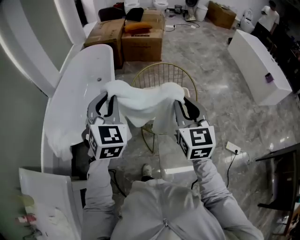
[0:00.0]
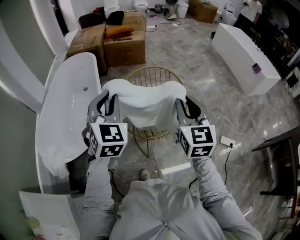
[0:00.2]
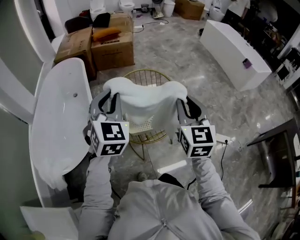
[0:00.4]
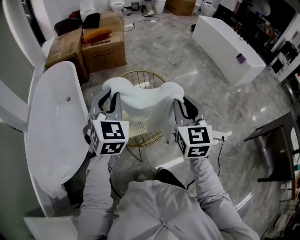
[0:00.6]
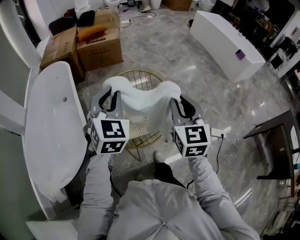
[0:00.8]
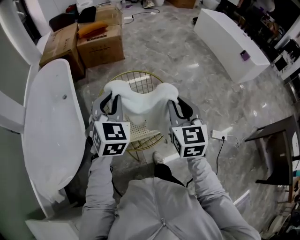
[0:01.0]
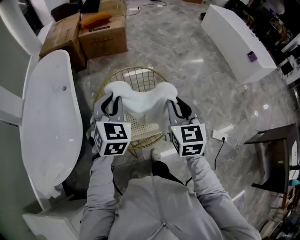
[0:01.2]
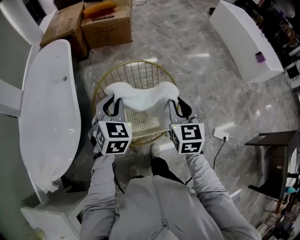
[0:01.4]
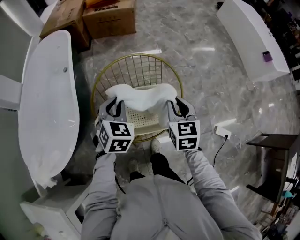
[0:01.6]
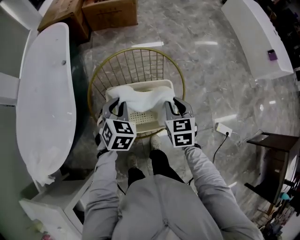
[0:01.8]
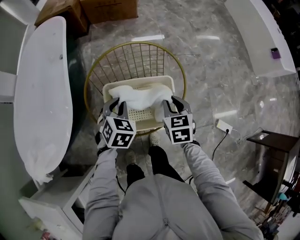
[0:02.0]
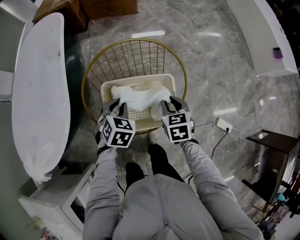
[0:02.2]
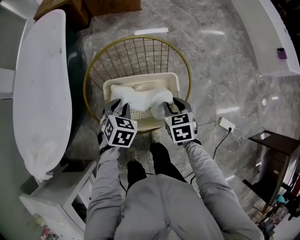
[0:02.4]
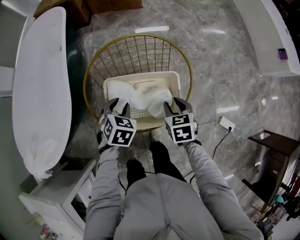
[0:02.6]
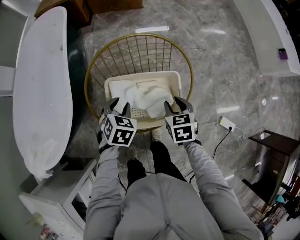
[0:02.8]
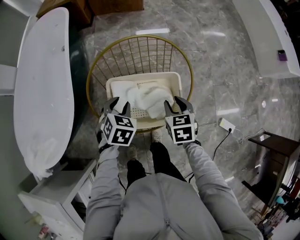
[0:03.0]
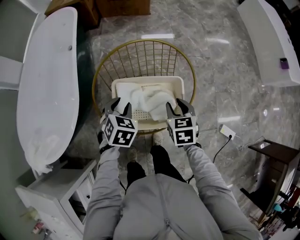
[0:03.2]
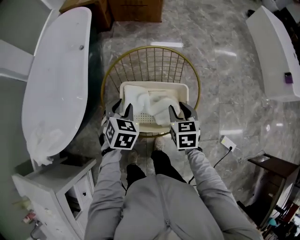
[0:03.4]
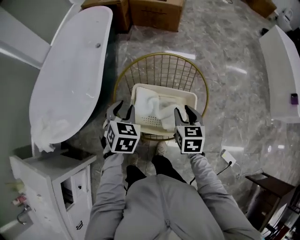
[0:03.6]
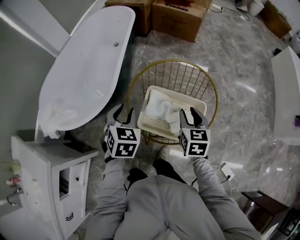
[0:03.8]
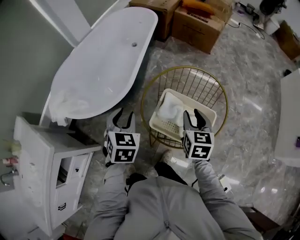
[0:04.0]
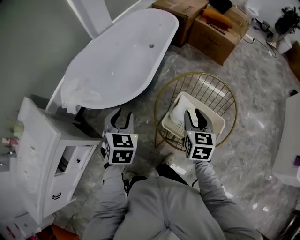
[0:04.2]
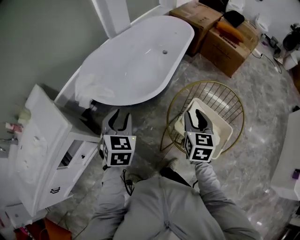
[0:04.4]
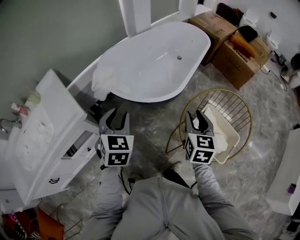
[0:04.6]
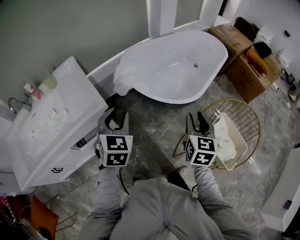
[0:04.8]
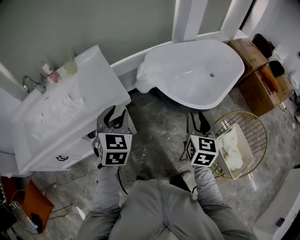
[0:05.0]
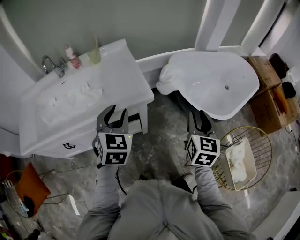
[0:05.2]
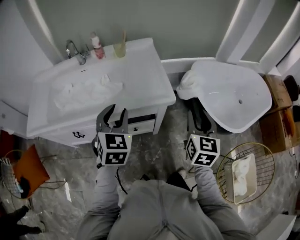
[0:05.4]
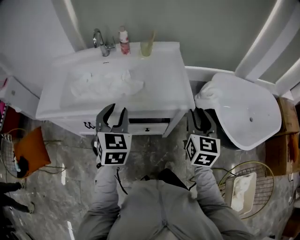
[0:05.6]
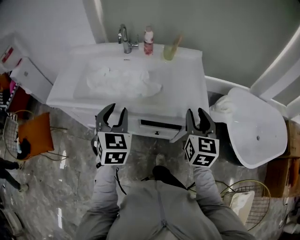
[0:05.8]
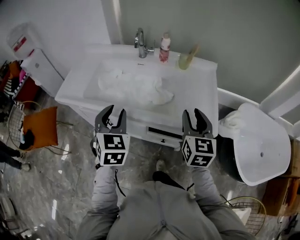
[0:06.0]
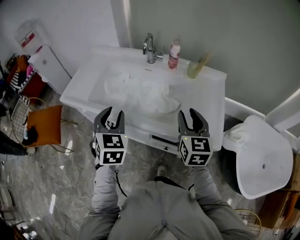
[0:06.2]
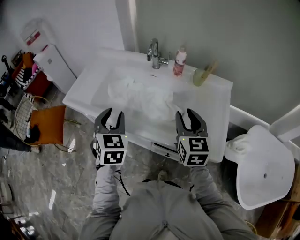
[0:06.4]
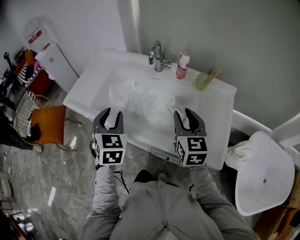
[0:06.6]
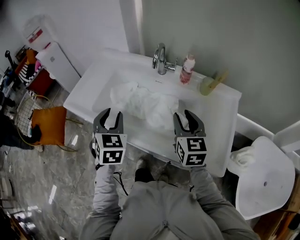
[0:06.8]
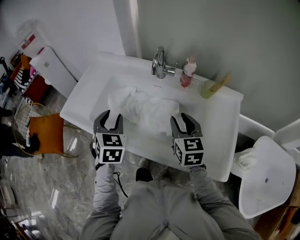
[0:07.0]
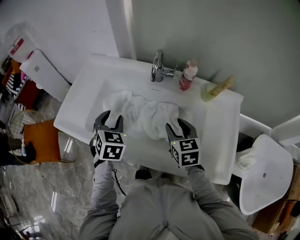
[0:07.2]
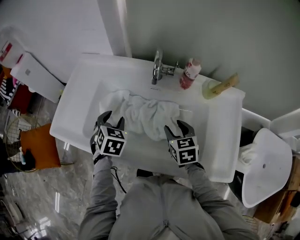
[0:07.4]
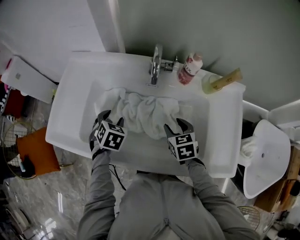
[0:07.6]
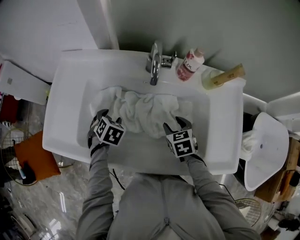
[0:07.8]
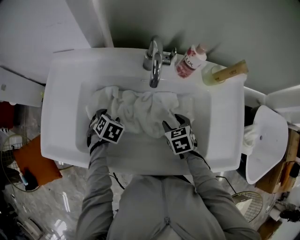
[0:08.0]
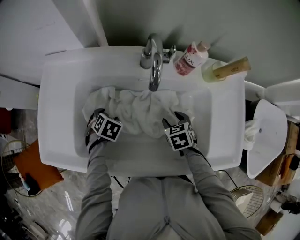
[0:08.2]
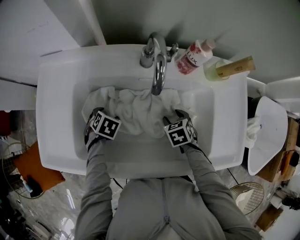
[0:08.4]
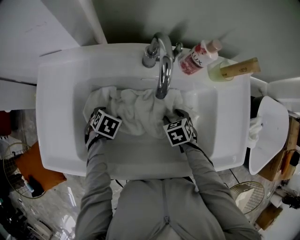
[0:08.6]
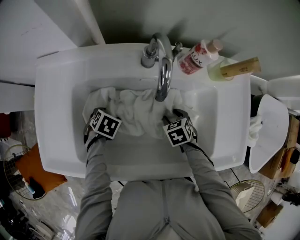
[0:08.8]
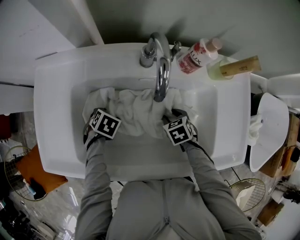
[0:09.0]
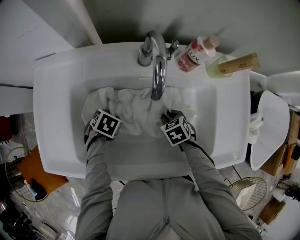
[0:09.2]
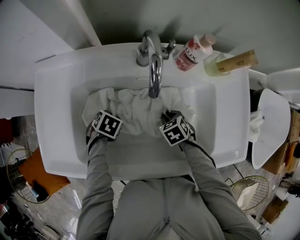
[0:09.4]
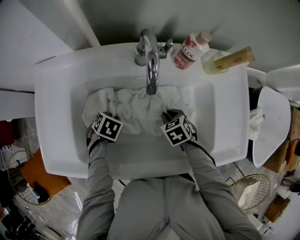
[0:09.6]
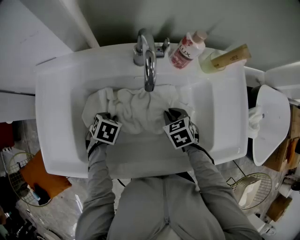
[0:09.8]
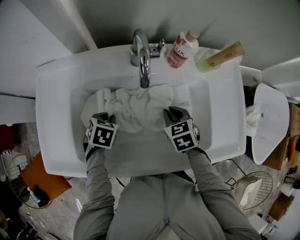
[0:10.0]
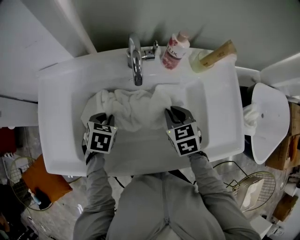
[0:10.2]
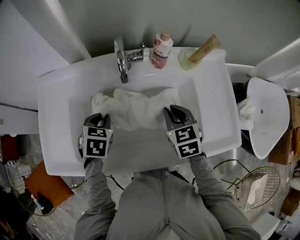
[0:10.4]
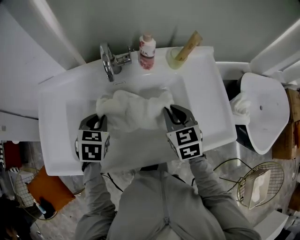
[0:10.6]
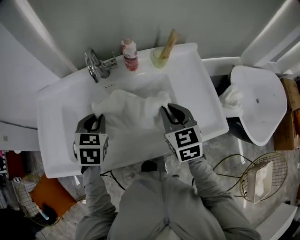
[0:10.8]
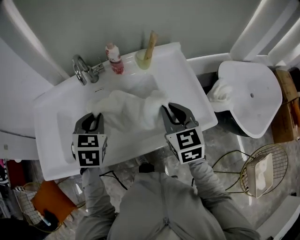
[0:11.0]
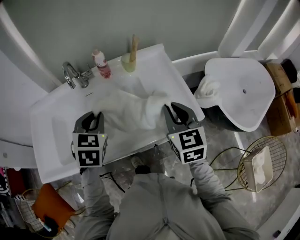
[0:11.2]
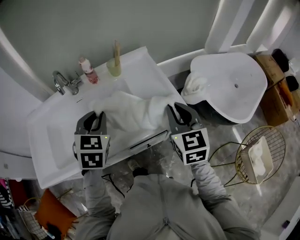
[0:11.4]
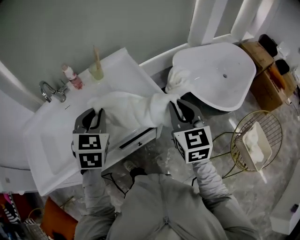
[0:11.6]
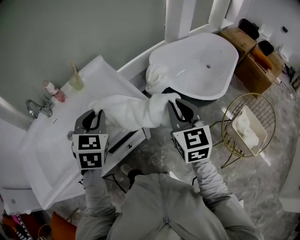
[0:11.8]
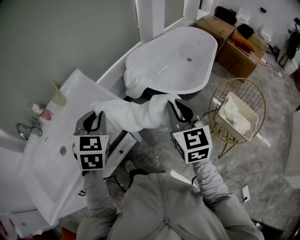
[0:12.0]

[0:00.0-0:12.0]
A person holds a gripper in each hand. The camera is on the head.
0:00.0 to 0:01.6: Both grippers move forward, downward and to the right, roughly 35 cm. The left gripper swivels roughly 30 degrees. The right gripper swivels roughly 30 degrees.
0:01.6 to 0:03.0: The two grippers go some 15 cm downward. The left gripper swivels roughly 20 degrees; the right gripper swivels some 20 degrees.
0:03.0 to 0:04.4: The right gripper ends up about 30 cm from where it was, and swivels some 40 degrees. Meanwhile the left gripper ends up about 40 cm from where it was, and turns by approximately 60 degrees.
0:04.4 to 0:06.0: Both grippers are carried some 70 cm. The right gripper changes its angle by about 70 degrees. Meanwhile the left gripper changes its angle by about 70 degrees.
0:06.0 to 0:07.6: Both grippers move forward and downward, roughly 35 cm. The left gripper tips its fingers downward by about 30 degrees. Meanwhile the right gripper angles its fingers downward, by some 30 degrees.
0:07.6 to 0:09.0: Both grippers move downward, some 15 cm. The left gripper changes its angle by roughly 30 degrees; the right gripper swivels approximately 20 degrees.
0:09.0 to 0:10.4: The grippers both shift upward by some 15 cm. The left gripper swivels approximately 30 degrees, and closes, while the right gripper points its fingers about 30 degrees further upward, and closes up.
0:10.4 to 0:12.0: The pair of grippers is taken some 60 cm. The left gripper swivels about 50 degrees. Meanwhile the right gripper rotates some 50 degrees.

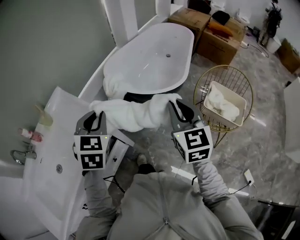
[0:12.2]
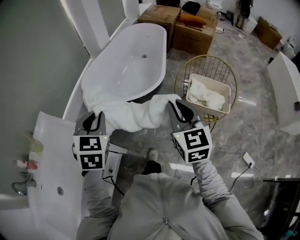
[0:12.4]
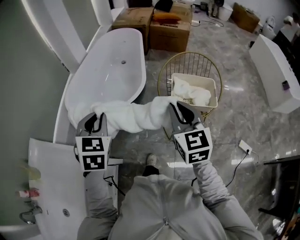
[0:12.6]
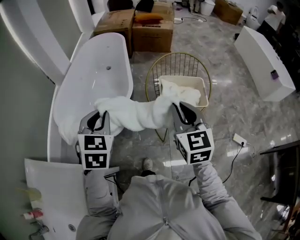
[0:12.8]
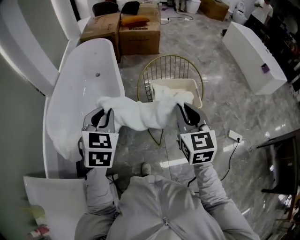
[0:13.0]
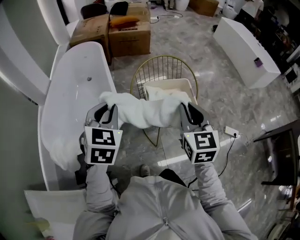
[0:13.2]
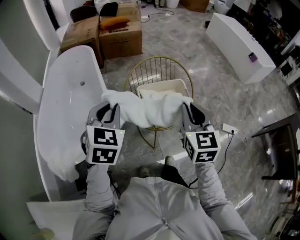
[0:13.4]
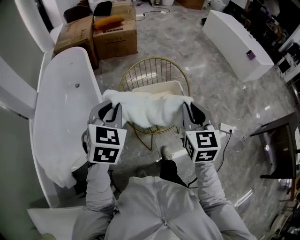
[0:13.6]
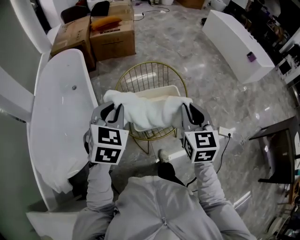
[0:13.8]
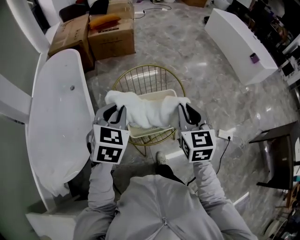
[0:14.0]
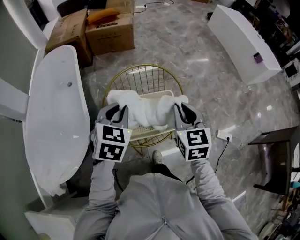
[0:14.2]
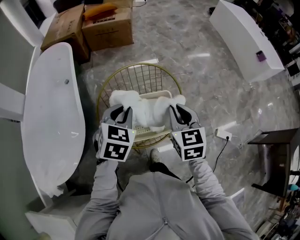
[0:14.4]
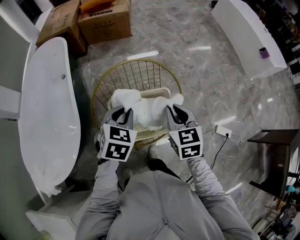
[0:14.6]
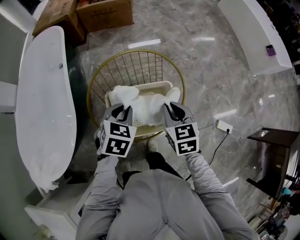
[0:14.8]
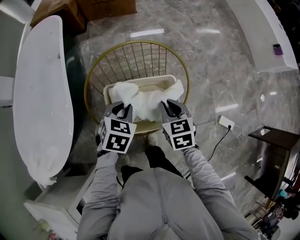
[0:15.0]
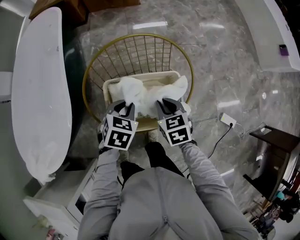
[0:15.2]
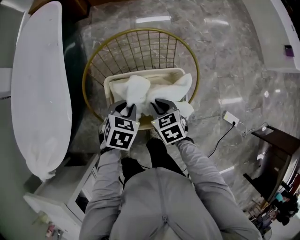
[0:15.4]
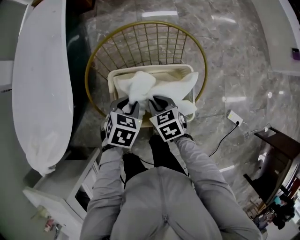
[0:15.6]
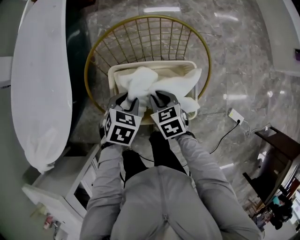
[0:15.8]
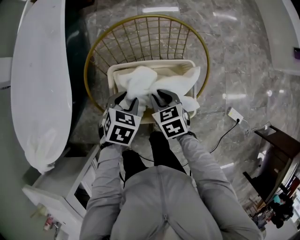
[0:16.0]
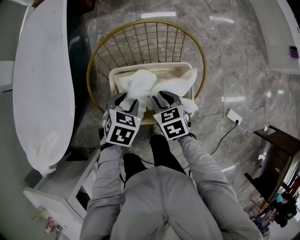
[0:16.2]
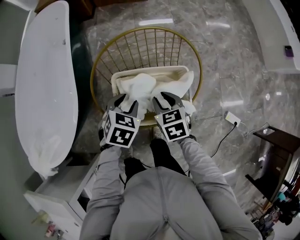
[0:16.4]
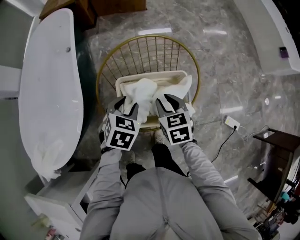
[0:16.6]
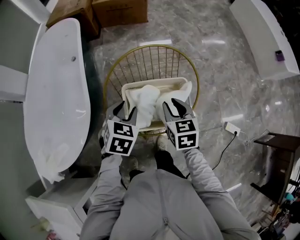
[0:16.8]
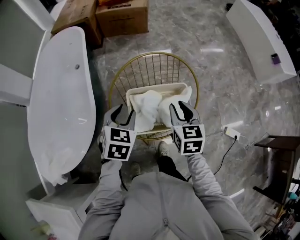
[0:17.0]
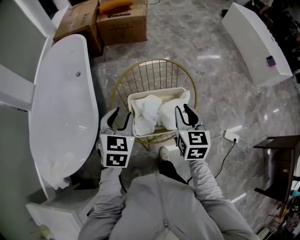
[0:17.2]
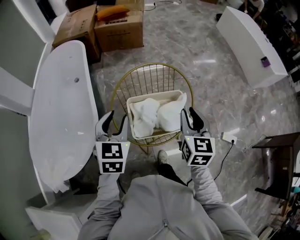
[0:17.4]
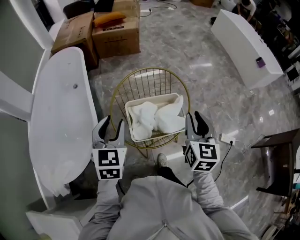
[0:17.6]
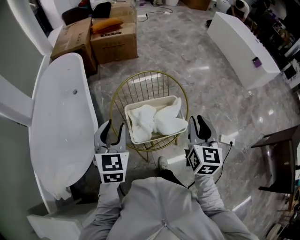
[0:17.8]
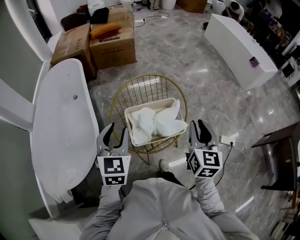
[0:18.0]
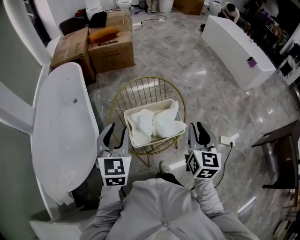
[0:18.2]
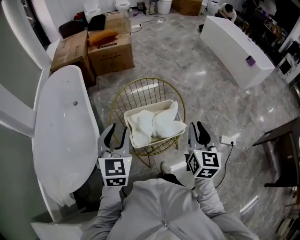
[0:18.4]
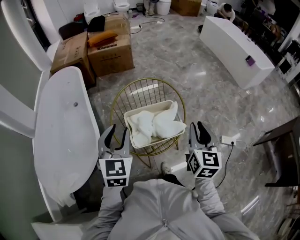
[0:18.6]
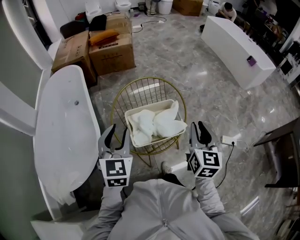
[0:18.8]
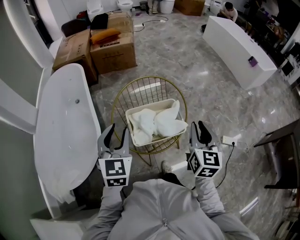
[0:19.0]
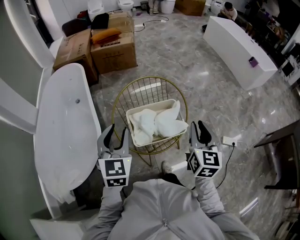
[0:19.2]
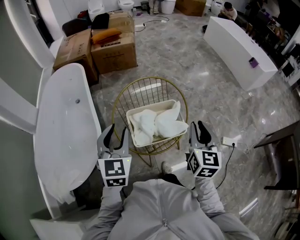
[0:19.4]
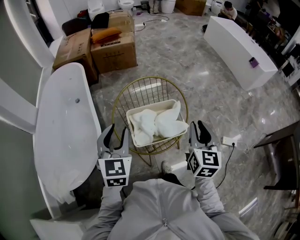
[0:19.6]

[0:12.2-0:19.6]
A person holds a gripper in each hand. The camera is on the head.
0:12.2 to 0:13.6: The right gripper moves some 40 cm, and changes its angle by some 60 degrees, while the left gripper changes place by about 50 cm, and changes its angle by approximately 60 degrees.
0:13.6 to 0:15.2: The left gripper heads downward, forward and to the right, covering roughly 35 cm, and swivels approximately 30 degrees. The right gripper heads downward and forward, covering about 35 cm, and tilts its fingers about 30 degrees downward.
0:16.6 to 0:18.2: The right gripper goes some 30 cm upward, backward and to the right, and angles its fingers upward, by about 30 degrees. Meanwhile the left gripper moves upward and backward, roughly 25 cm, and angles its fingers upward, by about 40 degrees.
0:18.2 to 0:19.6: The grippers move only a little.

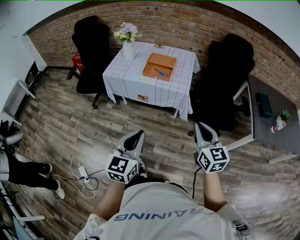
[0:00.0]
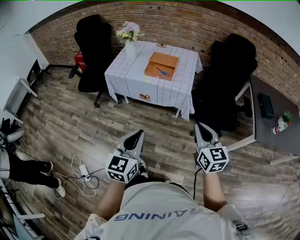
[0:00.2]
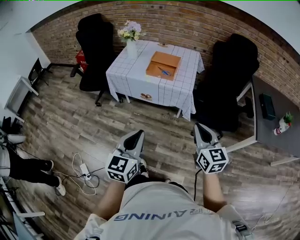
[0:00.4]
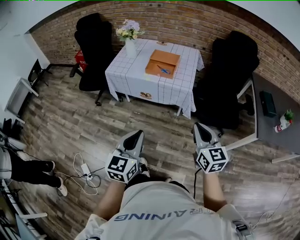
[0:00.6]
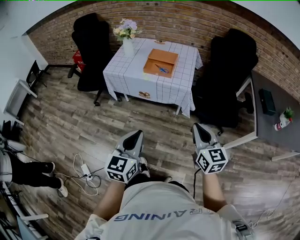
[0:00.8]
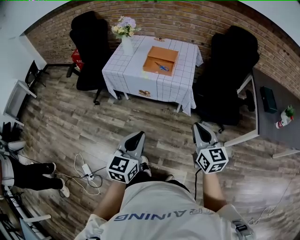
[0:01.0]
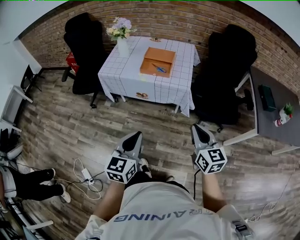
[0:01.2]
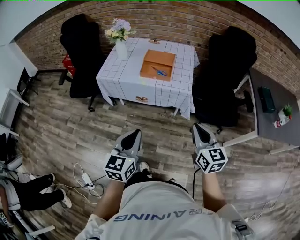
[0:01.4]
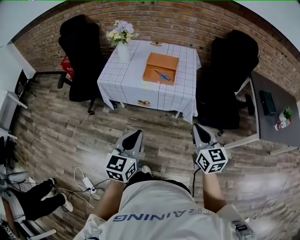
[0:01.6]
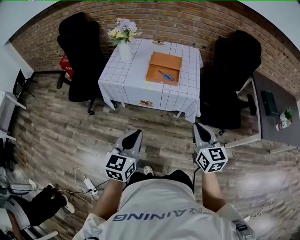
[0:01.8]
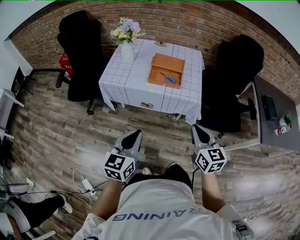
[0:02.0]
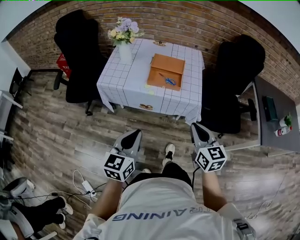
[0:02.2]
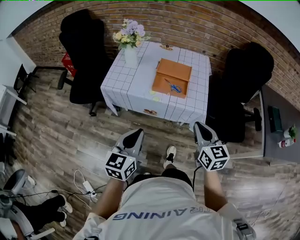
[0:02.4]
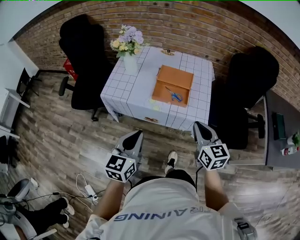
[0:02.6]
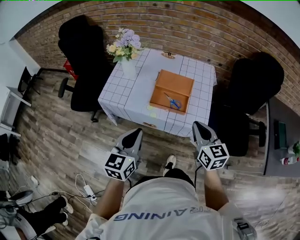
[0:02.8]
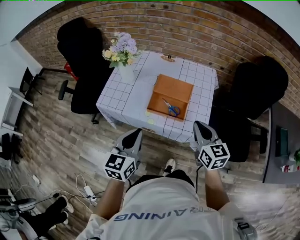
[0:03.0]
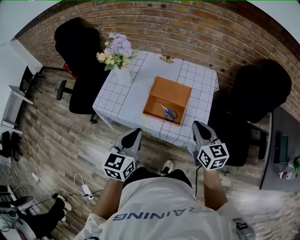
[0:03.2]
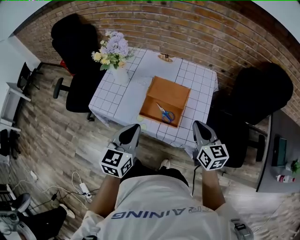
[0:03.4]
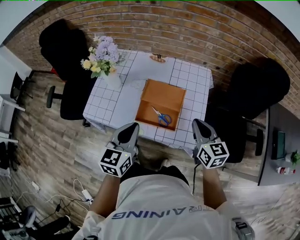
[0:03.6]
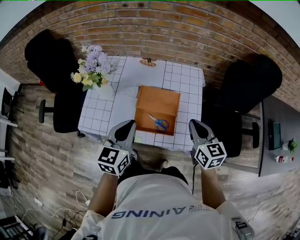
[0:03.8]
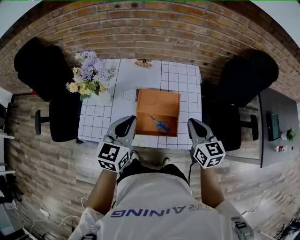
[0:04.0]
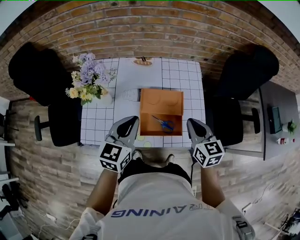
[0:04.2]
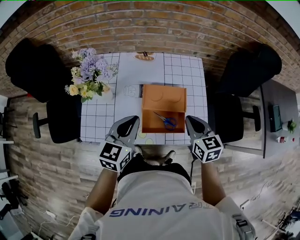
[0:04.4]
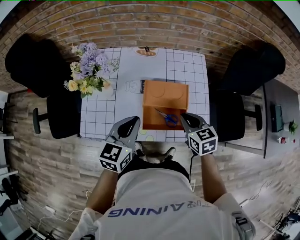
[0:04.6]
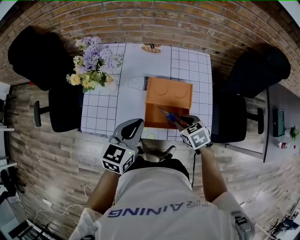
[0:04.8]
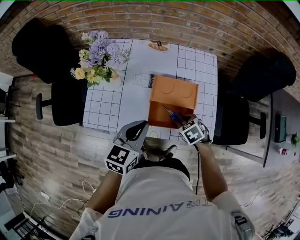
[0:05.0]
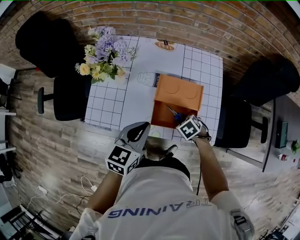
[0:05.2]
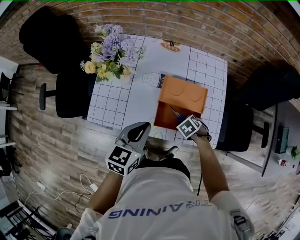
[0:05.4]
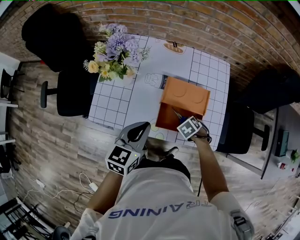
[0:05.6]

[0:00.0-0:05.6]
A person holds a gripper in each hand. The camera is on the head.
0:00.0 to 0:01.4: Both grippers travel together forward, approximately 10 cm.
0:01.4 to 0:02.8: The two grippers go some 30 cm forward.
0:02.8 to 0:04.2: Both grippers move forward, some 25 cm.
0:04.2 to 0:05.6: The left gripper is displaced downward by roughly 5 cm, while the right gripper heads downward, covering approximately 25 cm, tilts its fingers about 60 degrees downward, and opens its fingers.
